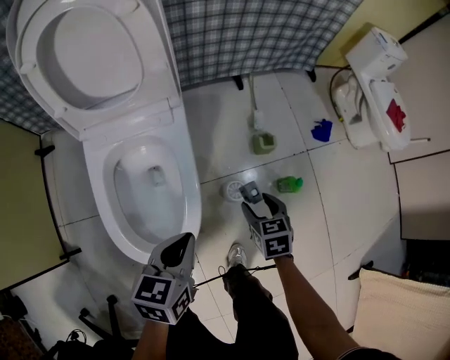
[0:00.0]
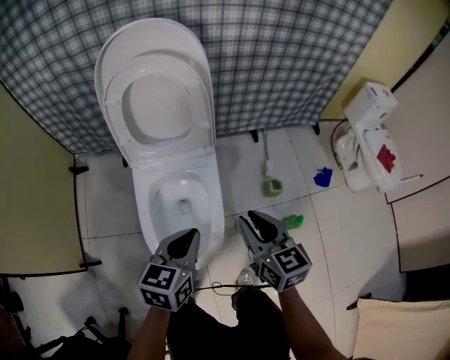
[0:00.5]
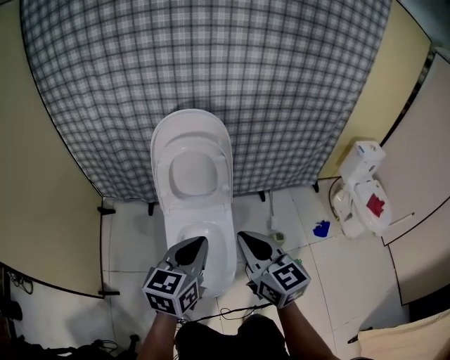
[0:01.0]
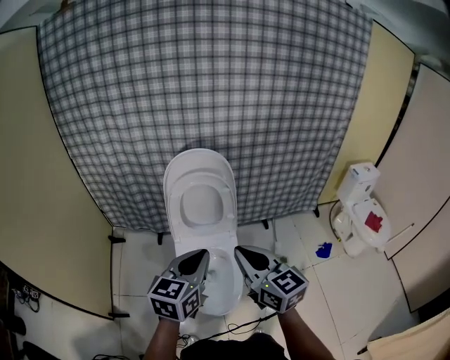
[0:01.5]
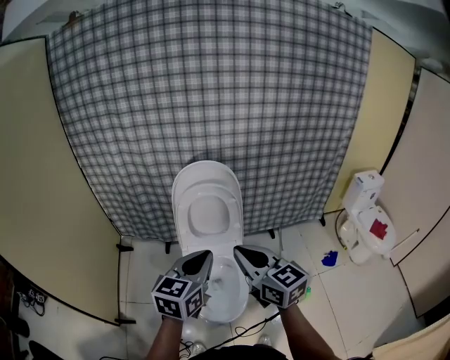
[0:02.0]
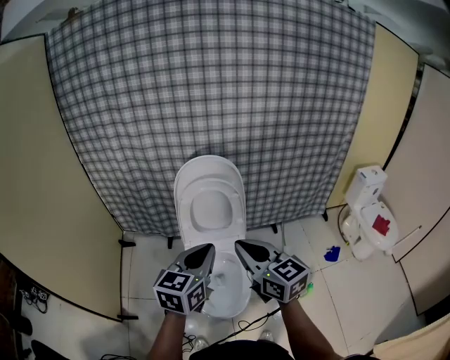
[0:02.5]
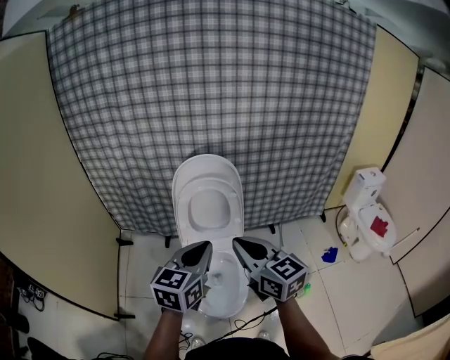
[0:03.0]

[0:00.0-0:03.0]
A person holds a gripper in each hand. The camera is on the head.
0:00.0 to 0:01.5: The left gripper shifts roughly 40 cm upward, and turns by approximately 30 degrees; the right gripper goes roughly 60 cm upward and to the left, points its fingers some 50 degrees further upward, and closes up.
0:01.5 to 0:03.0: The right gripper changes place by roughly 5 cm. The left gripper shifts about 5 cm upward.

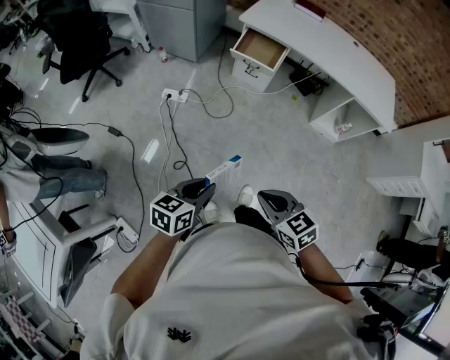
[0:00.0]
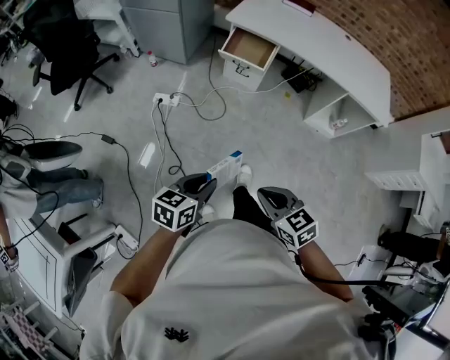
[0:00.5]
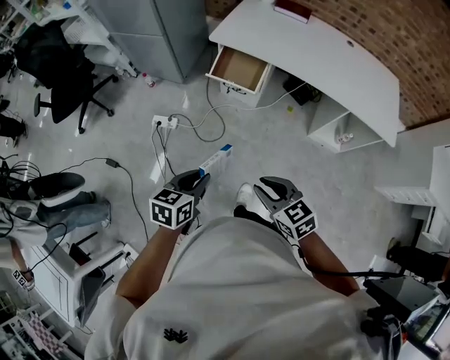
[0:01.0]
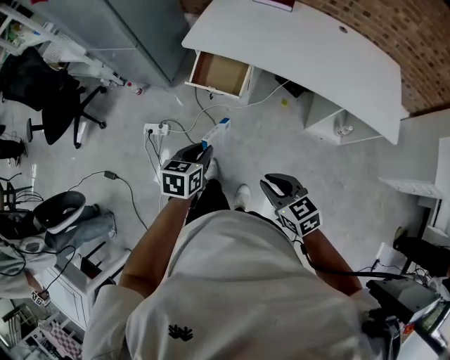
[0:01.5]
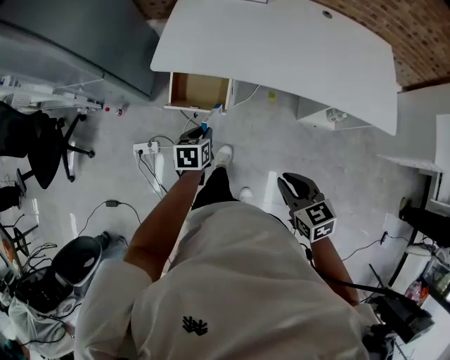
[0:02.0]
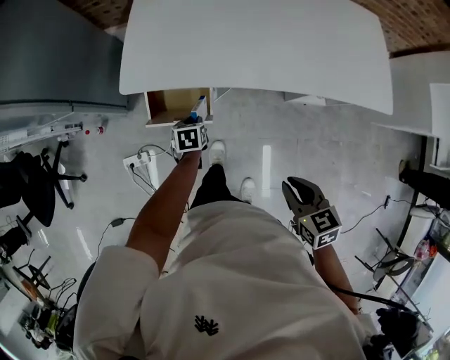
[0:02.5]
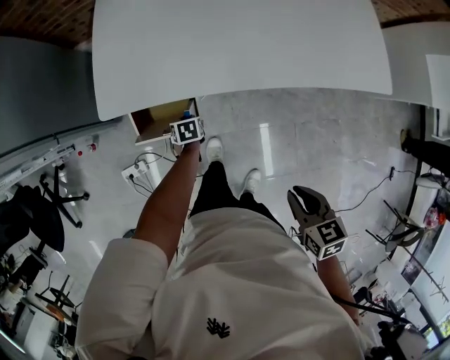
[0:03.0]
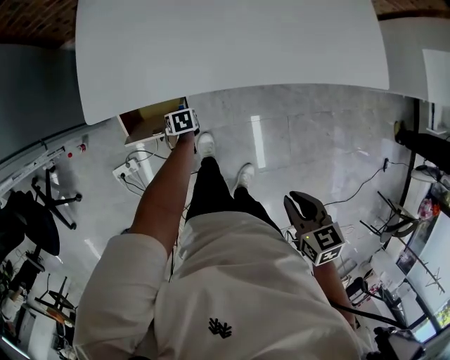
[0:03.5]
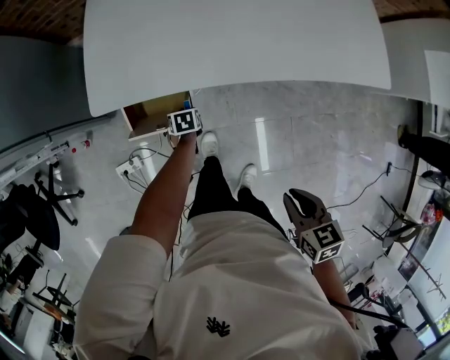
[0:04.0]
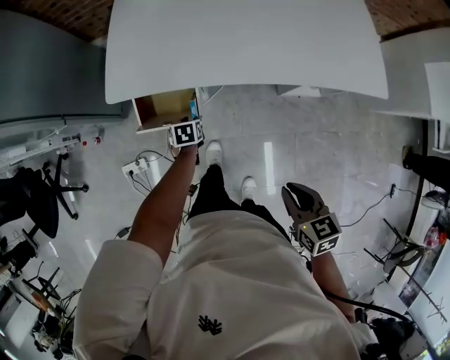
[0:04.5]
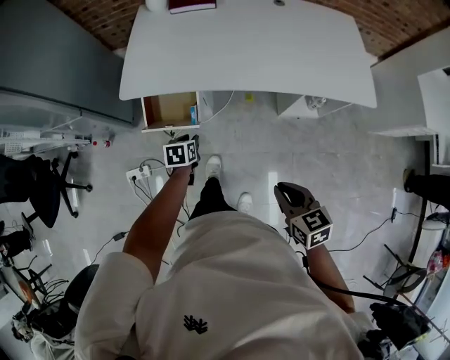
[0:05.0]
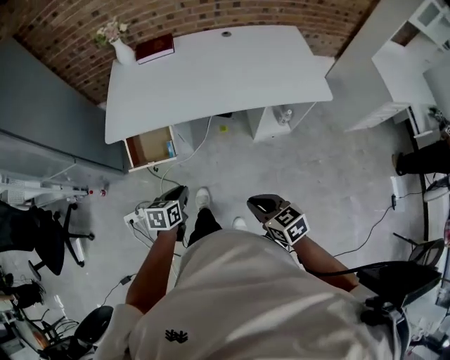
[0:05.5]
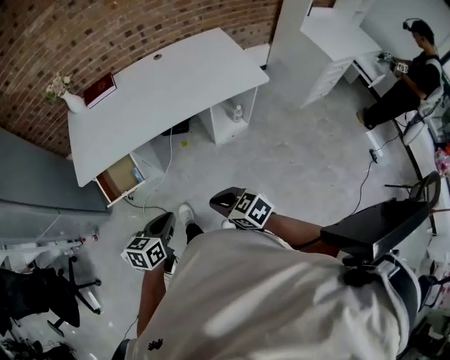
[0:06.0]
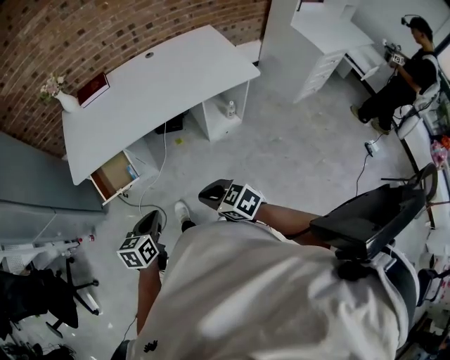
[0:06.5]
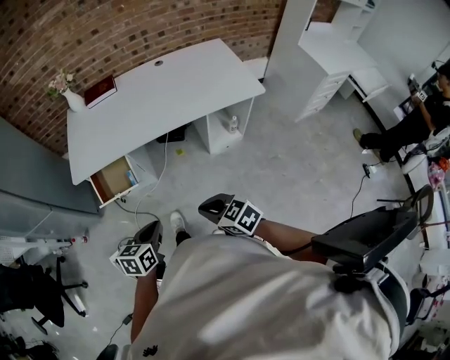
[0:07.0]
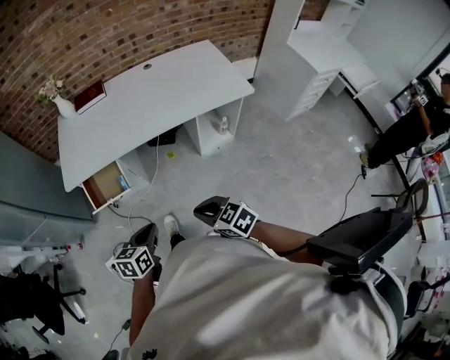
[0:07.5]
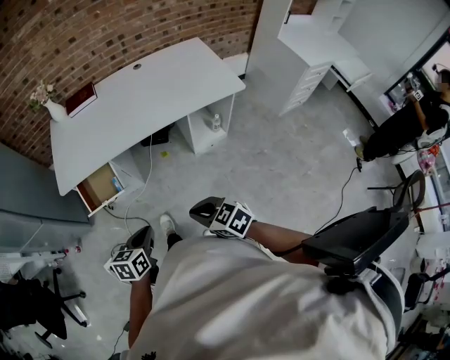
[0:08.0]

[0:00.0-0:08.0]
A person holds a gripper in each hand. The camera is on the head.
0:00.0 to 0:02.0: Both grippers are carried forward and to the right, some 70 cm. The right gripper swivels about 30 degrees. Meanwhile the left gripper changes its angle by about 20 degrees.
0:02.0 to 0:04.0: The left gripper shifts about 30 cm downward and forward, and turns by approximately 20 degrees. Meanwhile the right gripper travels forward and downward by some 10 cm, and swivels roughly 30 degrees.
0:04.0 to 0:06.0: The right gripper goes about 20 cm backward, and changes its angle by roughly 30 degrees, while the left gripper is displaced backward and upward by approximately 50 cm, tilts its fingers roughly 40 degrees upward, and closes.
0:06.0 to 0:08.0: The grippers make only small movements.

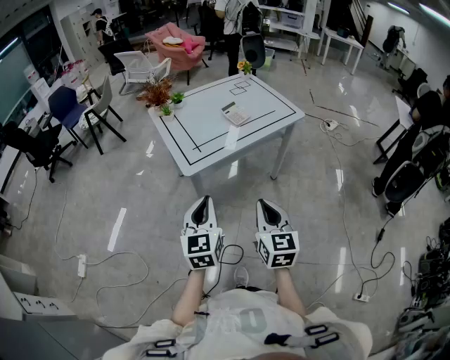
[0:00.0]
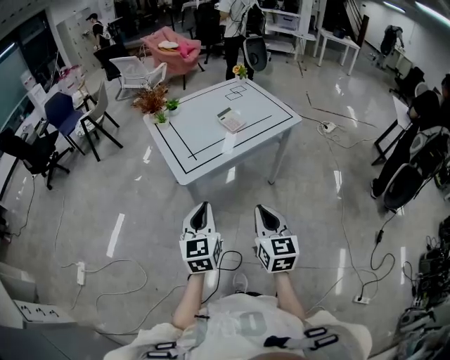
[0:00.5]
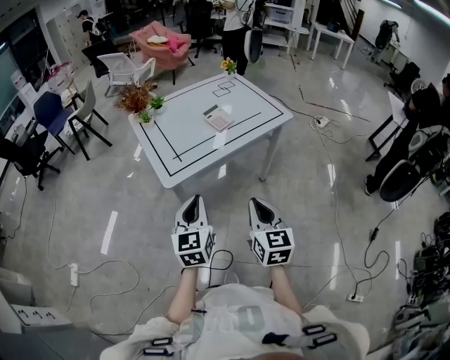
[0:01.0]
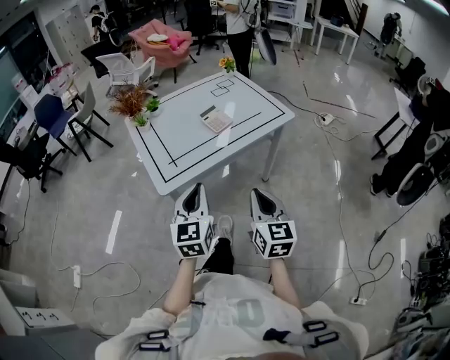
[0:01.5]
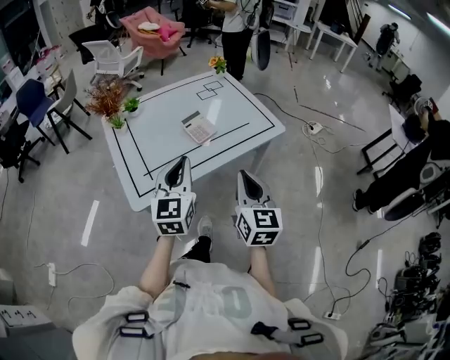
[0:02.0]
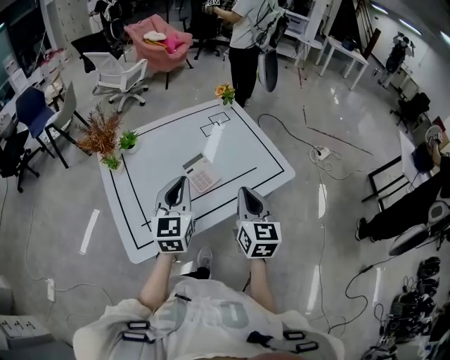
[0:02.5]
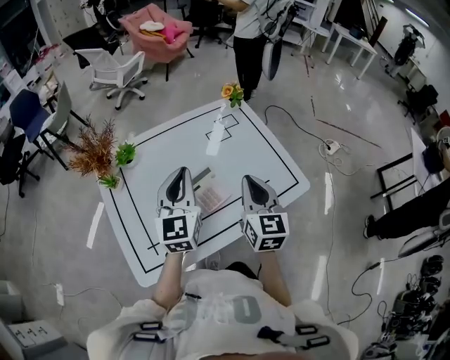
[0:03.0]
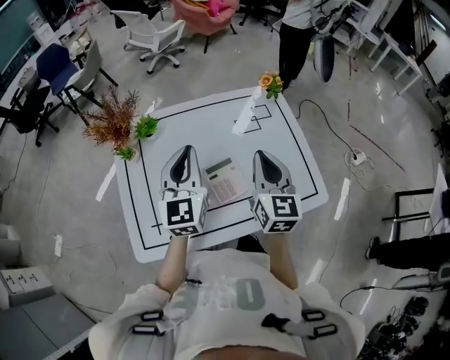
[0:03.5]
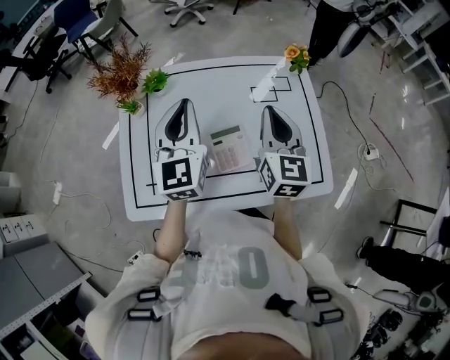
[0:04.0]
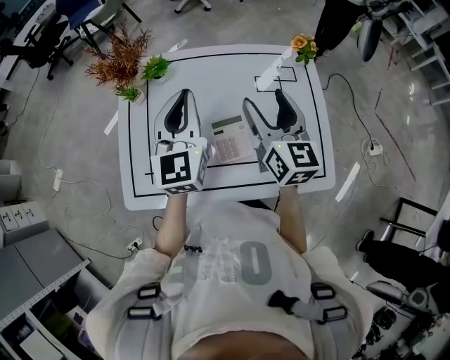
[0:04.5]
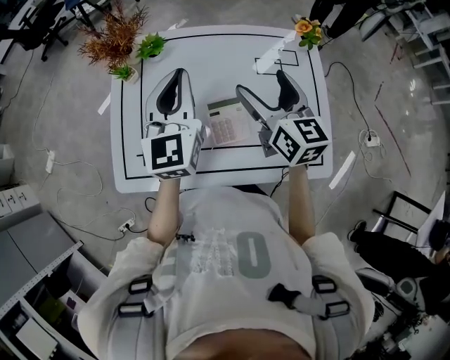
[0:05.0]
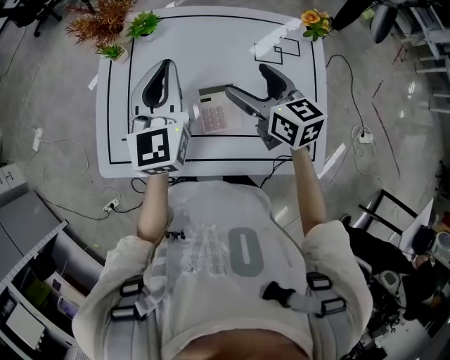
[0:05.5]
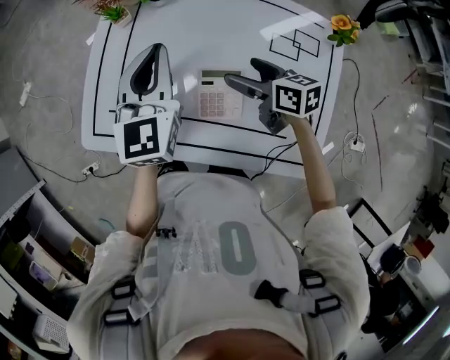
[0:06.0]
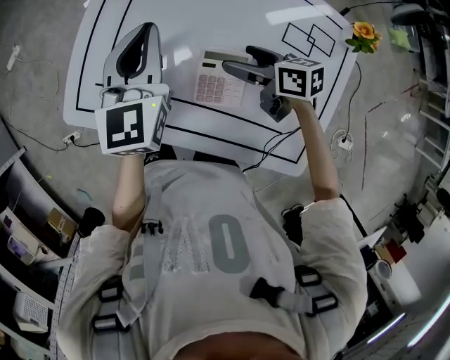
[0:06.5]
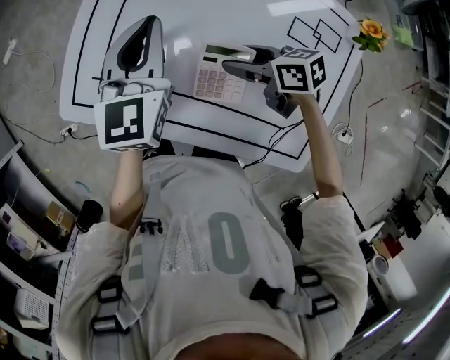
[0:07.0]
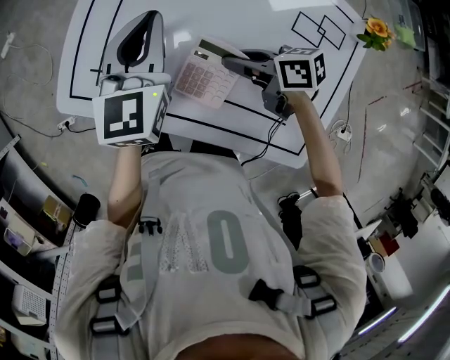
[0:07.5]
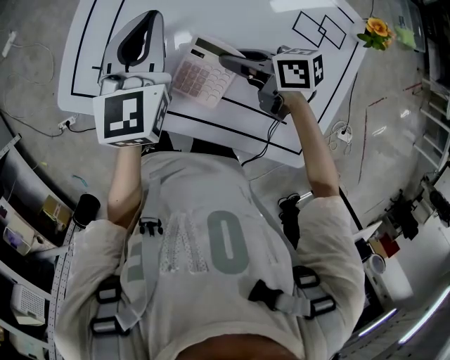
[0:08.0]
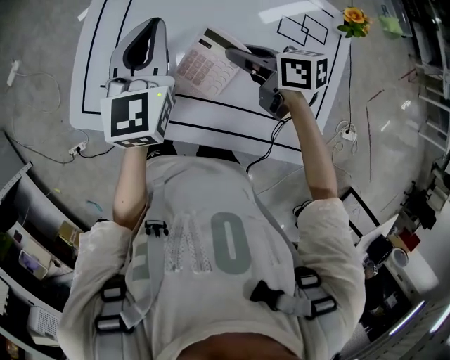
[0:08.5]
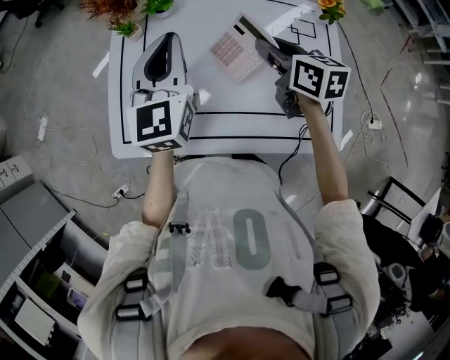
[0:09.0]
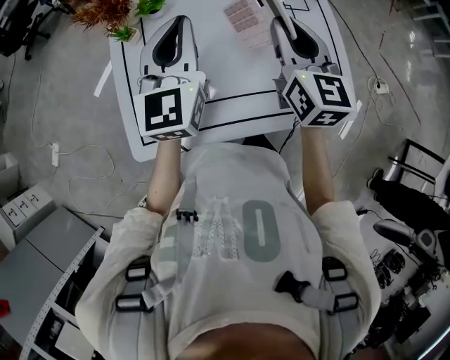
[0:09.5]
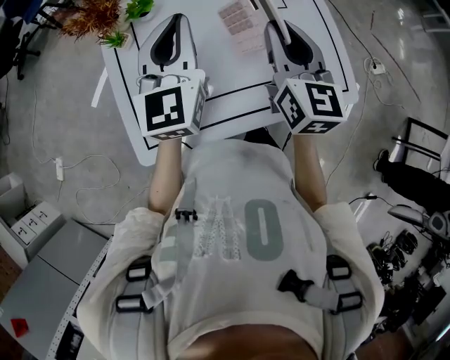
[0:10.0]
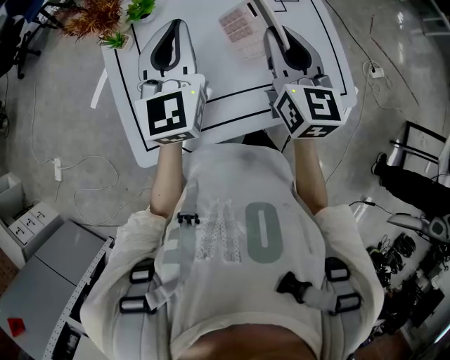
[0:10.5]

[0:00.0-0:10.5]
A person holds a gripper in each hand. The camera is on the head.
0:00.0 to 0:02.0: The right gripper travels forward and to the right by some 30 cm. Meanwhile the left gripper moves forward, about 30 cm.
0:02.0 to 0:04.0: The right gripper shifts by roughly 40 cm, and swivels some 20 degrees; the left gripper ends up about 35 cm from where it was, and turns by approximately 30 degrees.
0:04.0 to 0:06.5: The right gripper moves downward, roughly 25 cm, swivels about 80 degrees, and opens, while the left gripper heads downward, covering about 10 cm, and turns by roughly 20 degrees.
0:06.5 to 0:08.5: The right gripper shifts about 5 cm upward, and closes its fingers.
0:08.5 to 0:10.5: The left gripper travels upward by roughly 10 cm, and changes its angle by about 30 degrees. Meanwhile the right gripper is displaced upward by some 15 cm, and changes its angle by roughly 80 degrees.

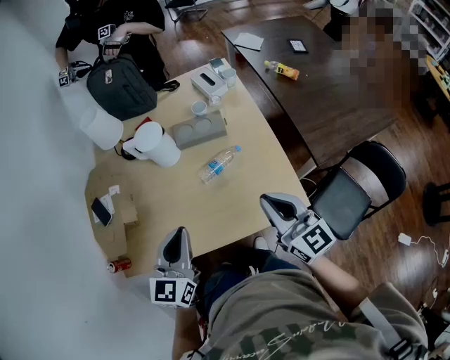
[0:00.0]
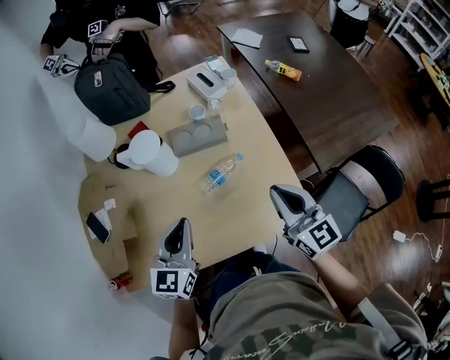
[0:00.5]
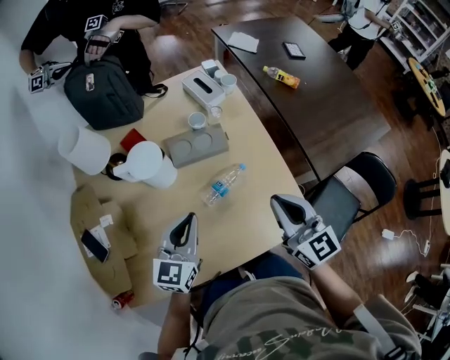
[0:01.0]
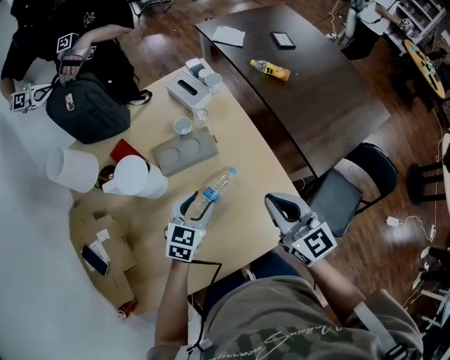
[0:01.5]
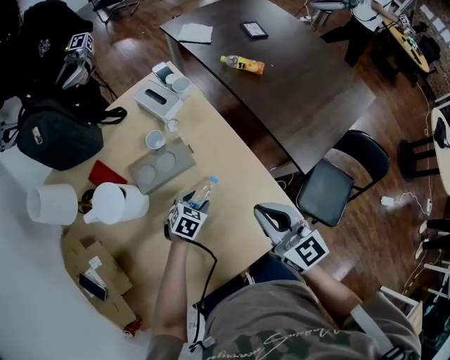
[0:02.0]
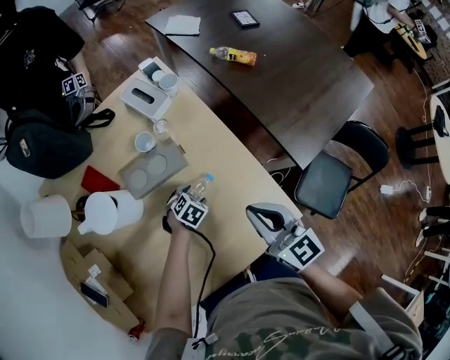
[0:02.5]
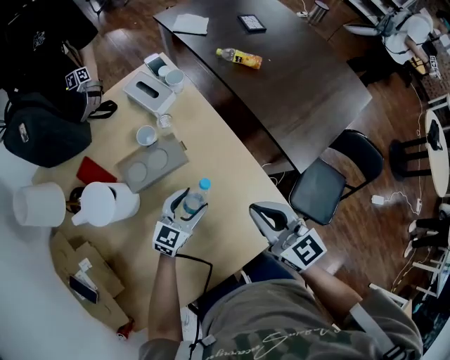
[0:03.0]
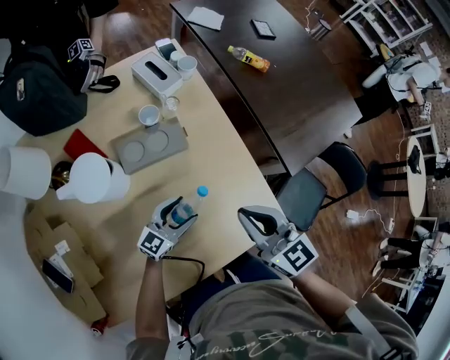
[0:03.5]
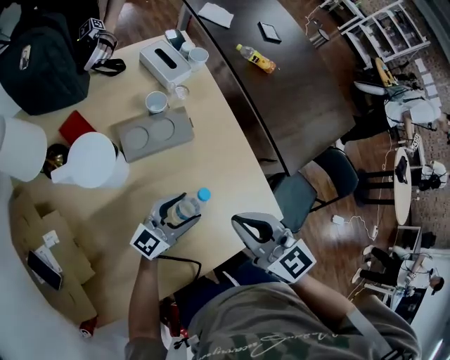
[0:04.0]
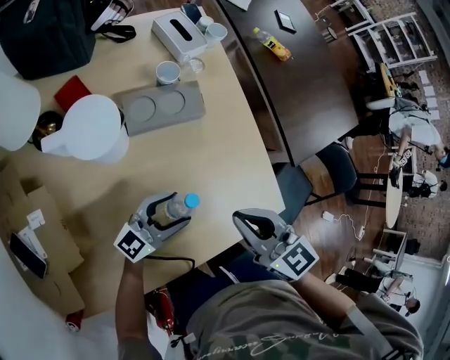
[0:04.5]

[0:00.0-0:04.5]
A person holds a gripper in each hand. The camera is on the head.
0:00.0 to 0:02.0: The left gripper goes some 35 cm downward, angles its fingers downward, by approximately 50 degrees, and opens up. Meanwhile the right gripper ends up approximately 15 cm from where it was.
0:02.0 to 0:04.5: The right gripper is displaced to the left, backward and downward by roughly 15 cm, and turns by some 20 degrees; the left gripper travels backward, upward and to the left by some 15 cm, and tips its fingers upward by some 70 degrees.
